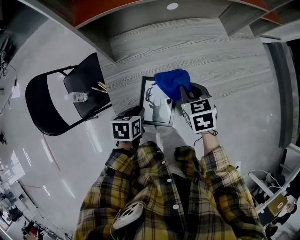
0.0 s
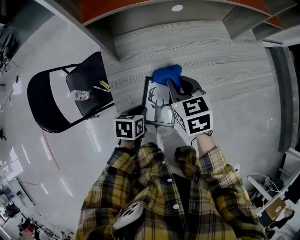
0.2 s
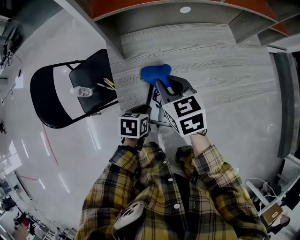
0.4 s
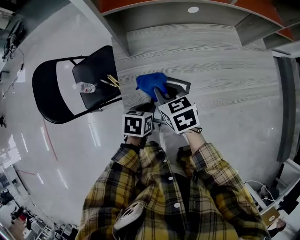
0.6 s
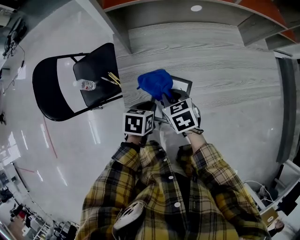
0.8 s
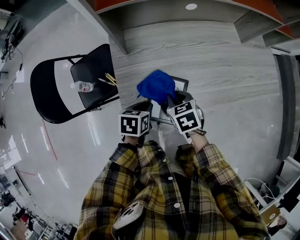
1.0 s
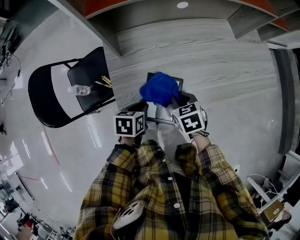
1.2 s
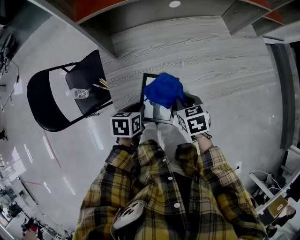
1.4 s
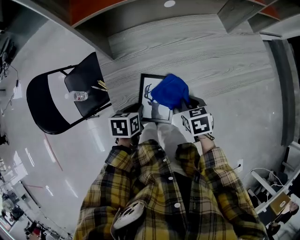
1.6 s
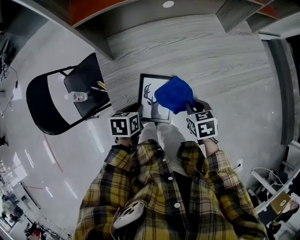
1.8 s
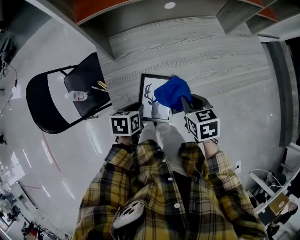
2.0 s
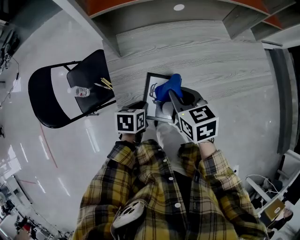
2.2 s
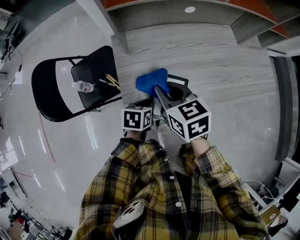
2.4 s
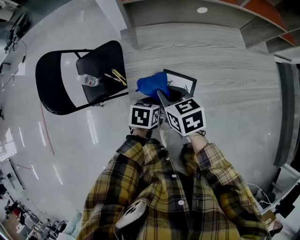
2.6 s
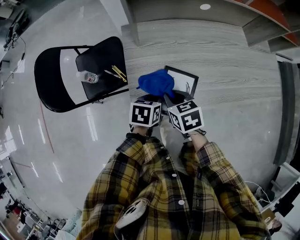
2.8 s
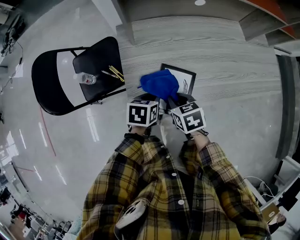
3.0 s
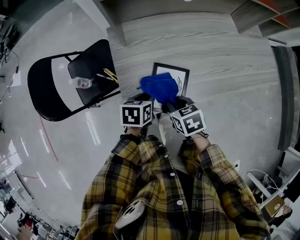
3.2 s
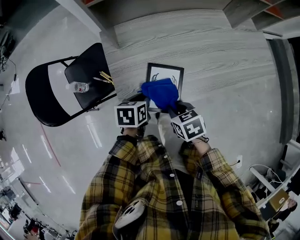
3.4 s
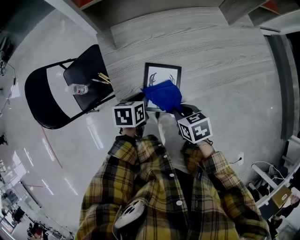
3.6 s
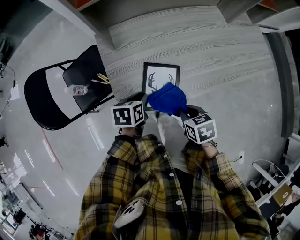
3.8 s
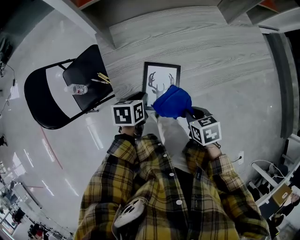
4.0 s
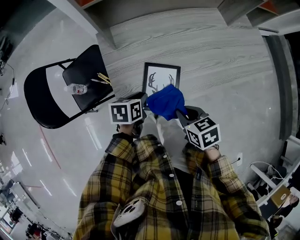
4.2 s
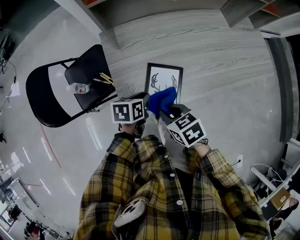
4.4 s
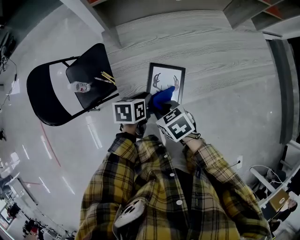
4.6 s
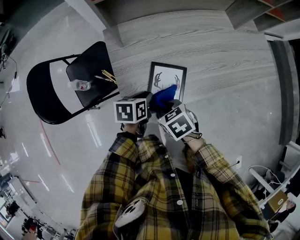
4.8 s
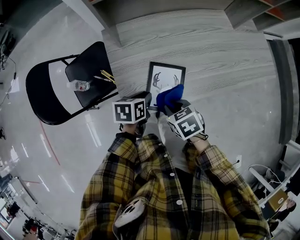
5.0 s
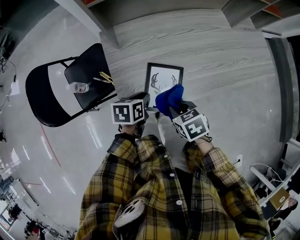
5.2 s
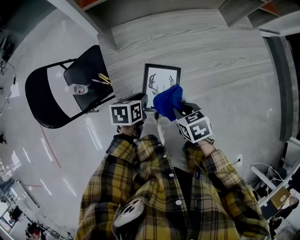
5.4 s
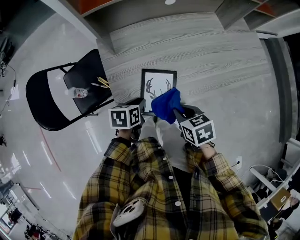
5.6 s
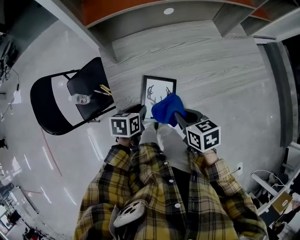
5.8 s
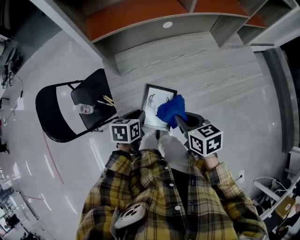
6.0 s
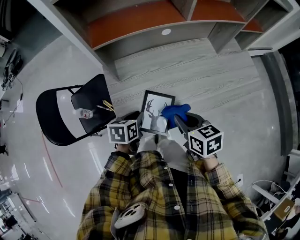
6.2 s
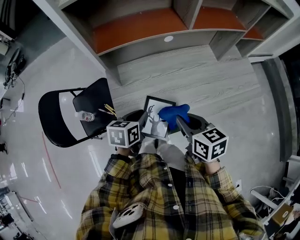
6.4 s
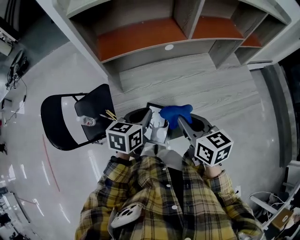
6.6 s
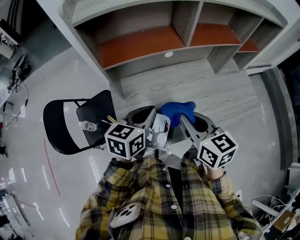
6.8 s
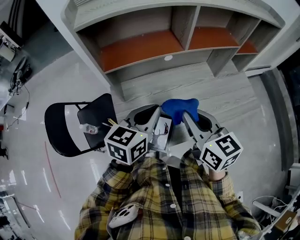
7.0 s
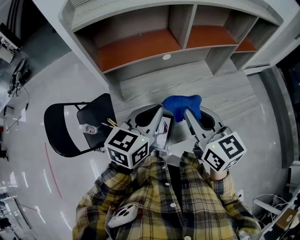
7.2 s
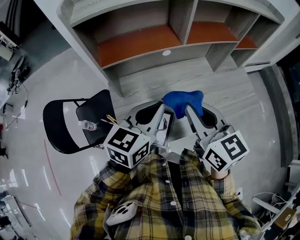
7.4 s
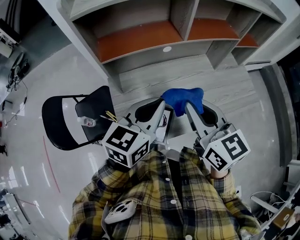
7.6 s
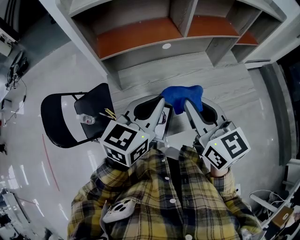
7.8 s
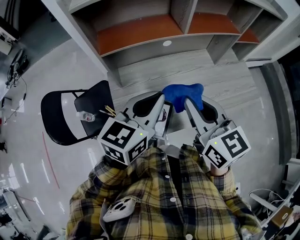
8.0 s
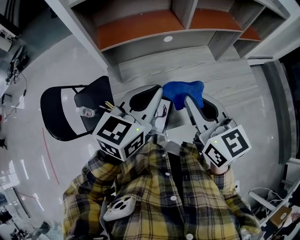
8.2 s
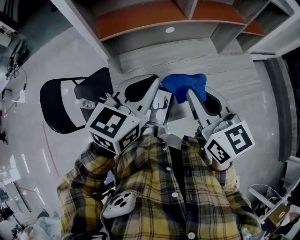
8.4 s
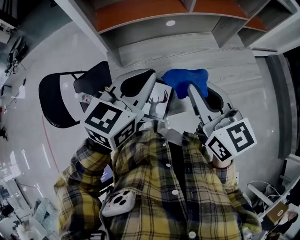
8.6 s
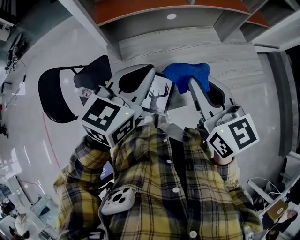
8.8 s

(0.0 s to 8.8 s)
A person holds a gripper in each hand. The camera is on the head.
0.0 s - 1.4 s: The right gripper moves downward and backward, some 10 cm, and moves some 15 cm to the left and comes back.
1.4 s - 3.0 s: The right gripper goes left and right, some 20 cm each way, reversing 2 times.
3.0 s - 4.4 s: The right gripper moves backward, some 5 cm, and goes to the right and returns, some 10 cm each way.
4.4 s - 5.8 s: The right gripper moves to the right, some 10 cm.
5.8 s - 7.4 s: Both grippers travel together upward, about 30 cm. The right gripper angles its fingers upward, by approximately 30 degrees, while the left gripper points its fingers some 40 degrees further upward.
7.4 s - 8.8 s: There are only small adjustments of the grippers.

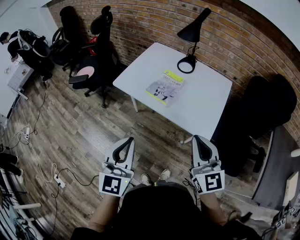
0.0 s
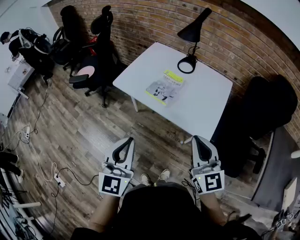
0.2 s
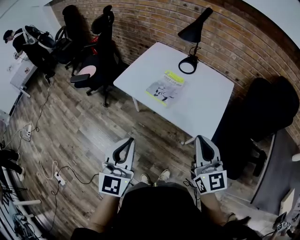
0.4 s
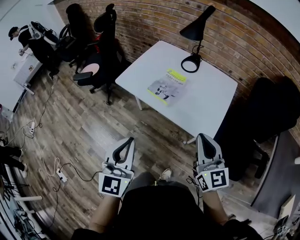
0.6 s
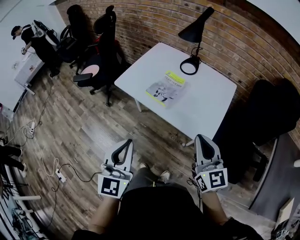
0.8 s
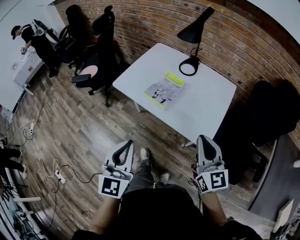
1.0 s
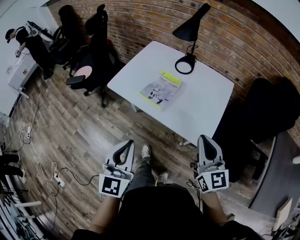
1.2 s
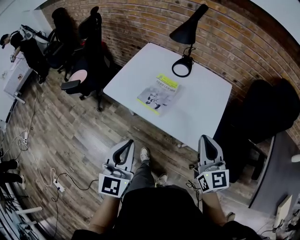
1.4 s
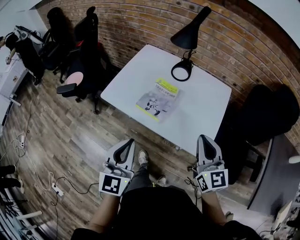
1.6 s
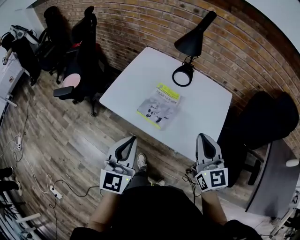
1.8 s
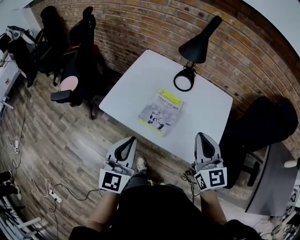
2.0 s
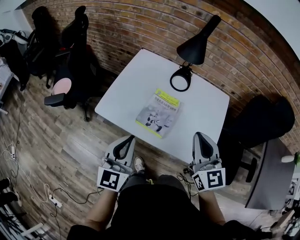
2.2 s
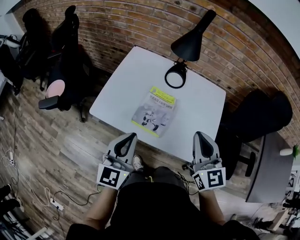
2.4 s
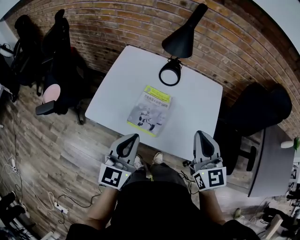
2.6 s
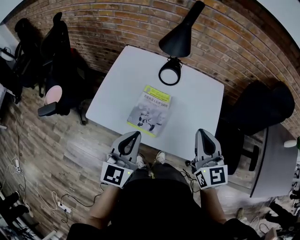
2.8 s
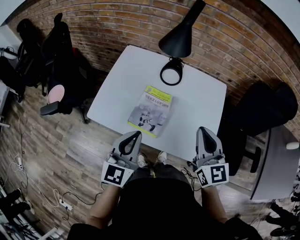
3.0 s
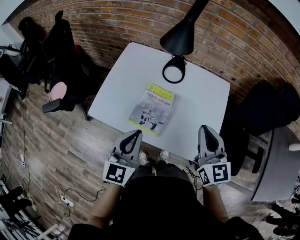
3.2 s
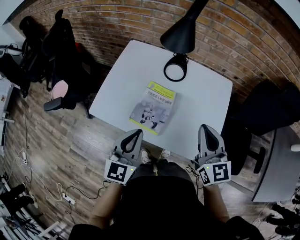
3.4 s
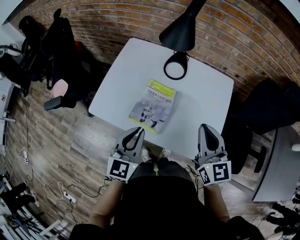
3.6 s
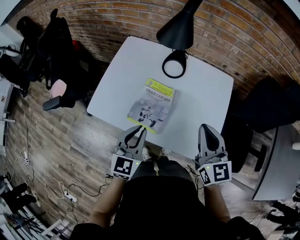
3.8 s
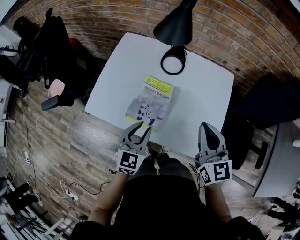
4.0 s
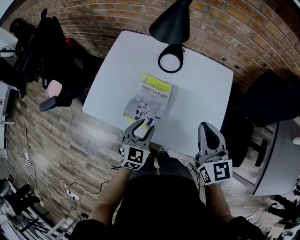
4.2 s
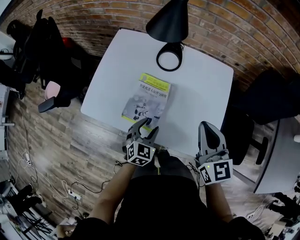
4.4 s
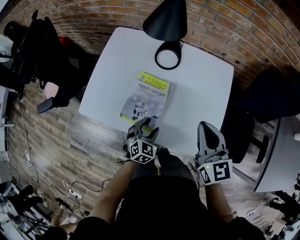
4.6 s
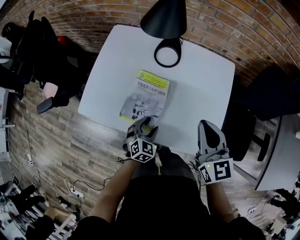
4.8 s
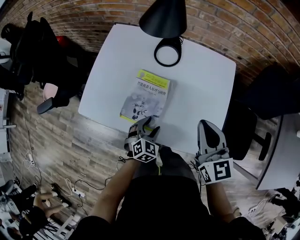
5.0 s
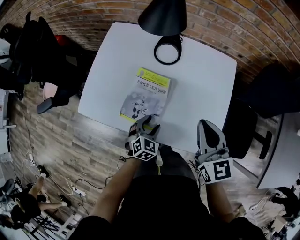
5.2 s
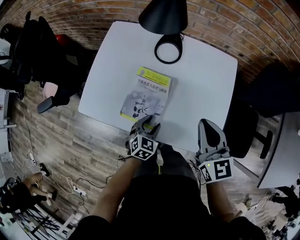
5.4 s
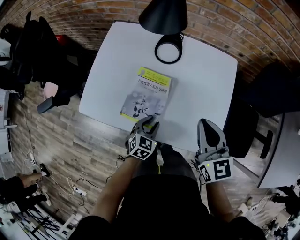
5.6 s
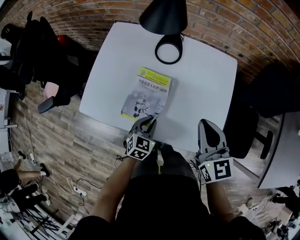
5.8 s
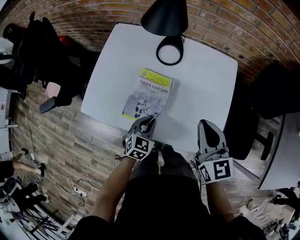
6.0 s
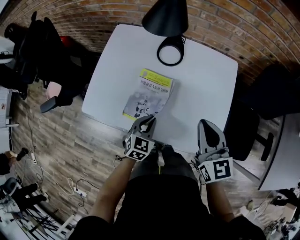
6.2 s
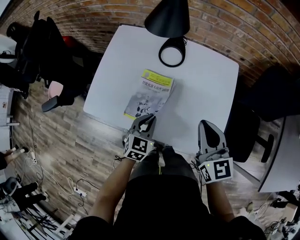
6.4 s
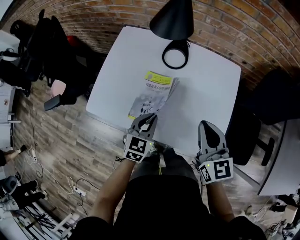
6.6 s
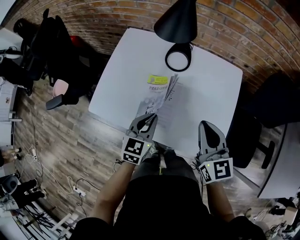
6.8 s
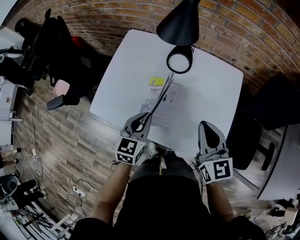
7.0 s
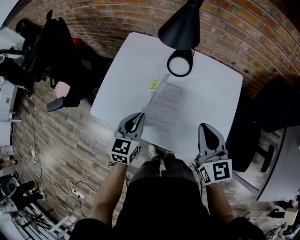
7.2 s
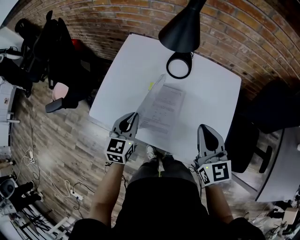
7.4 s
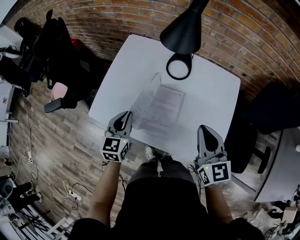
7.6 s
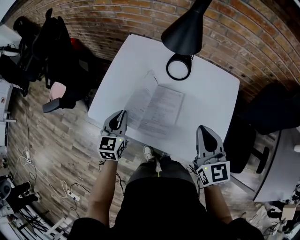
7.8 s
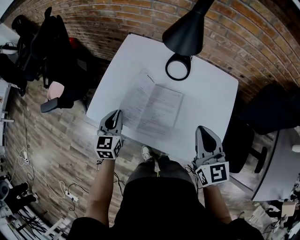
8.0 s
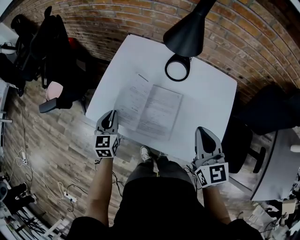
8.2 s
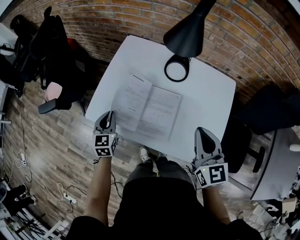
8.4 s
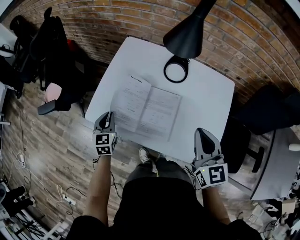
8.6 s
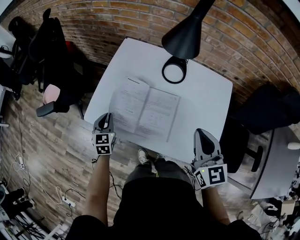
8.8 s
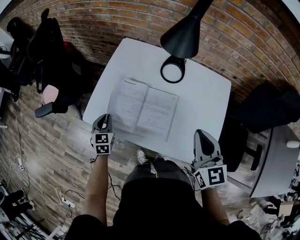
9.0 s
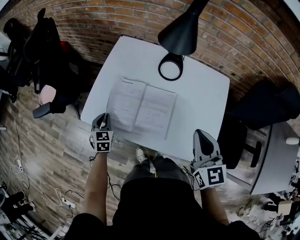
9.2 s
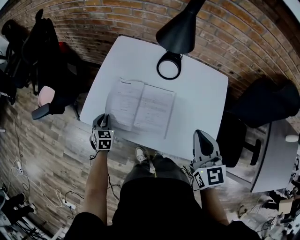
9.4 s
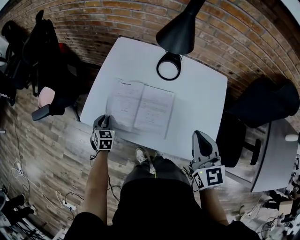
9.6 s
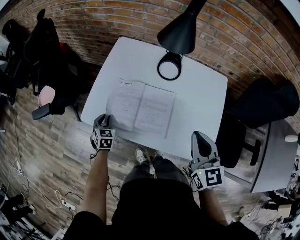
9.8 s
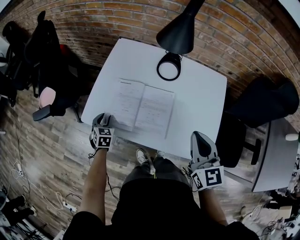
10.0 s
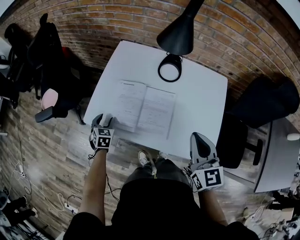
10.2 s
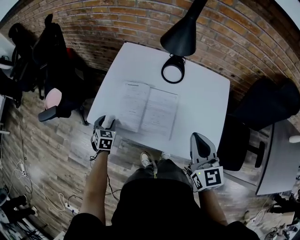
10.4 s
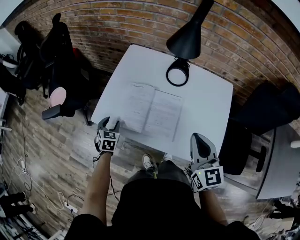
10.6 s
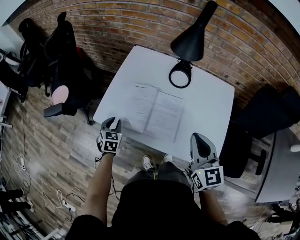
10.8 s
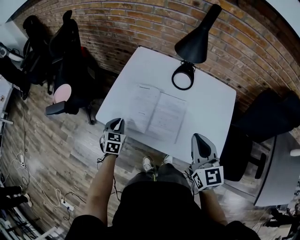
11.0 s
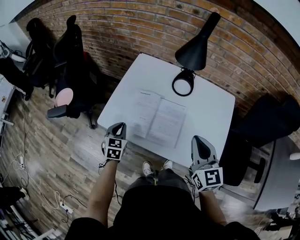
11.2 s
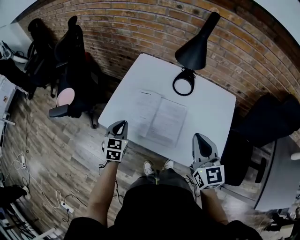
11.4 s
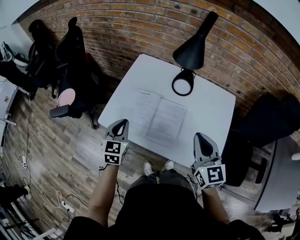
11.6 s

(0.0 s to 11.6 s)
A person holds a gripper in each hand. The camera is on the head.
0.0 s - 1.4 s: The left gripper travels forward by approximately 10 cm. The right gripper travels forward and to the right by approximately 10 cm.
1.4 s - 2.8 s: Both grippers travel together forward, approximately 20 cm.
2.8 s - 4.4 s: The left gripper is displaced downward by roughly 25 cm, tilts its fingers some 30 degrees downward, and opens; the right gripper travels downward by some 5 cm.
4.4 s - 5.8 s: The left gripper closes up.
5.8 s - 7.2 s: The left gripper goes roughly 15 cm upward and to the left, and changes its angle by about 20 degrees.
7.2 s - 8.8 s: The left gripper is displaced to the left and downward by roughly 20 cm.
8.8 s - 10.2 s: The left gripper shifts roughly 5 cm downward, and opens its fingers.
10.2 s - 11.6 s: The left gripper travels upward by some 20 cm, swivels some 20 degrees, and closes.

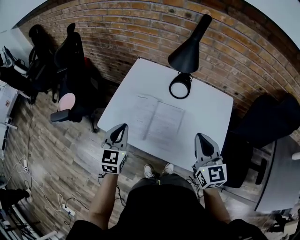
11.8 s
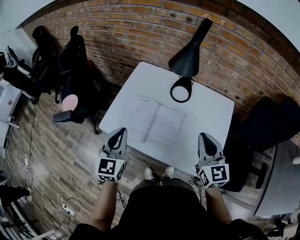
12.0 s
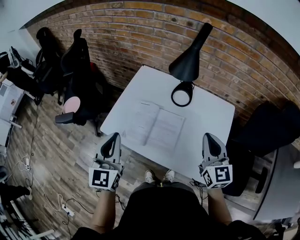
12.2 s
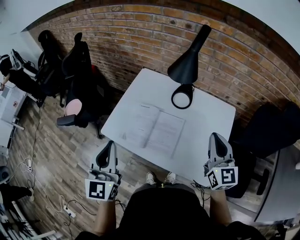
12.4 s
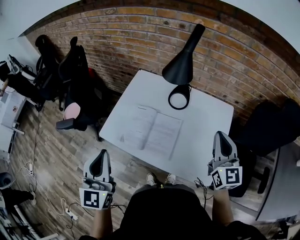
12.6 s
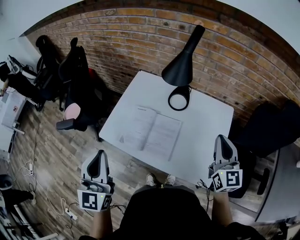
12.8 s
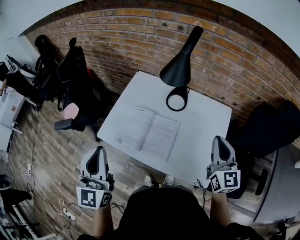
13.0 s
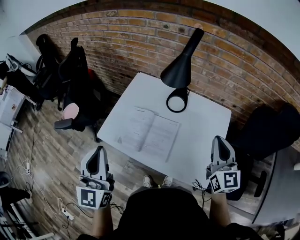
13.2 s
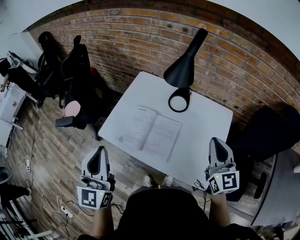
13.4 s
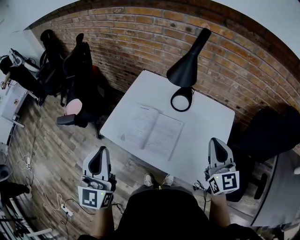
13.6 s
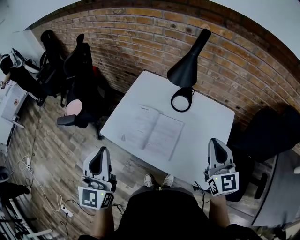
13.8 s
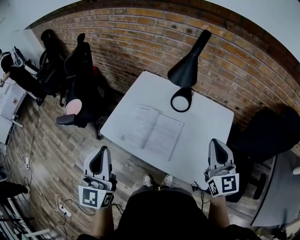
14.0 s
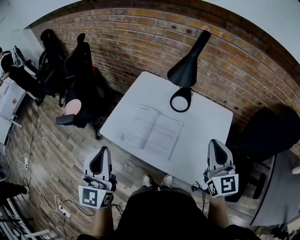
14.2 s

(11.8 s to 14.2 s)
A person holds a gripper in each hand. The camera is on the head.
11.8 s - 13.0 s: The right gripper heads to the right and upward, covering roughly 10 cm. Meanwhile the left gripper shifts approximately 20 cm upward and backward, and turns by some 30 degrees.
13.0 s - 14.2 s: The right gripper moves some 5 cm.

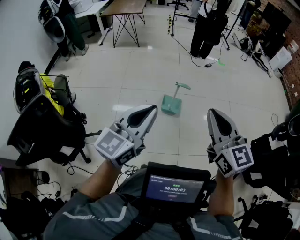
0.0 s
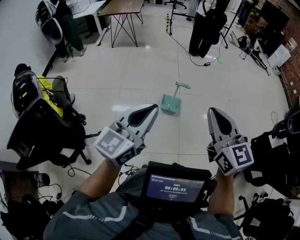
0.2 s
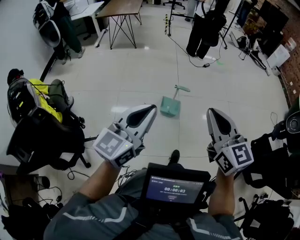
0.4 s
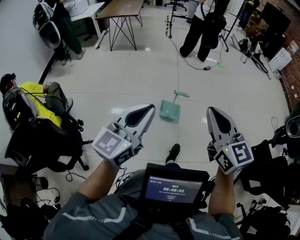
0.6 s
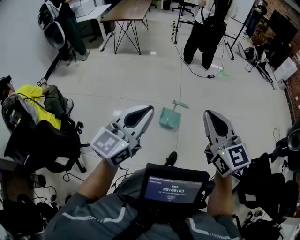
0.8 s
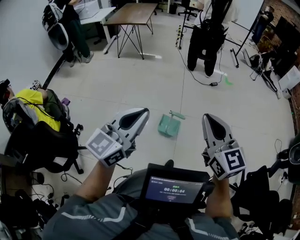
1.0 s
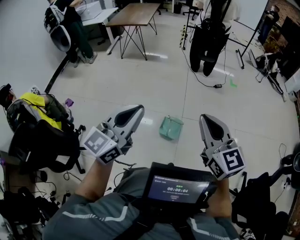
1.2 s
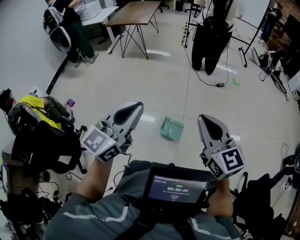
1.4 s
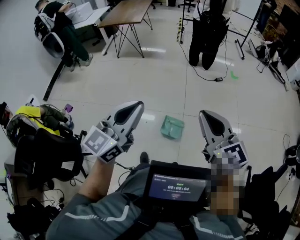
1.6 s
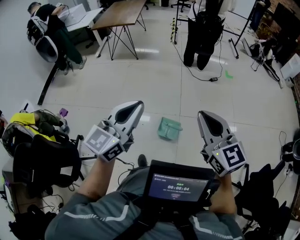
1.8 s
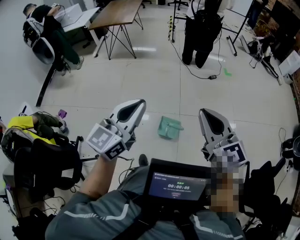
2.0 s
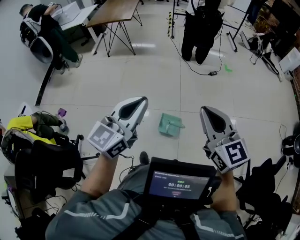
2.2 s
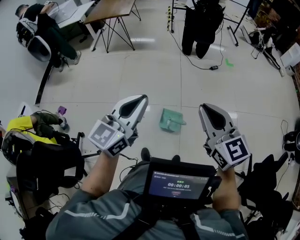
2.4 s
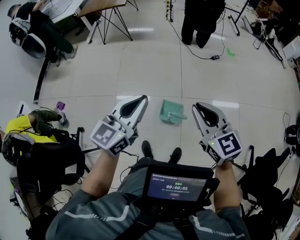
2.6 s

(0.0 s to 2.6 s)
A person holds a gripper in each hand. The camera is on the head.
0.0 s - 1.2 s: Both grippers travel together forward, roughly 35 cm.
1.2 s - 2.6 s: The two grippers go approximately 25 cm forward and downward.
